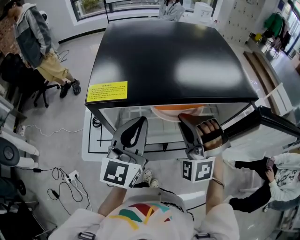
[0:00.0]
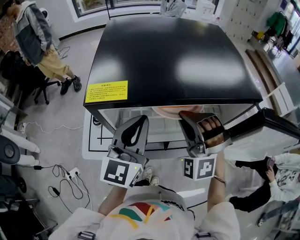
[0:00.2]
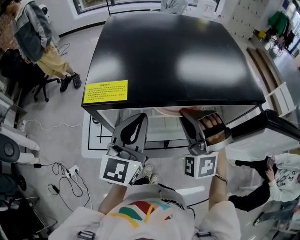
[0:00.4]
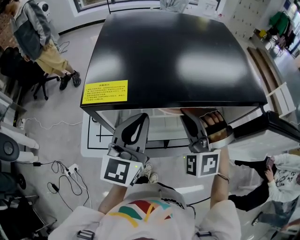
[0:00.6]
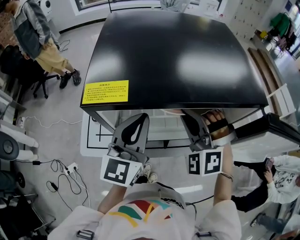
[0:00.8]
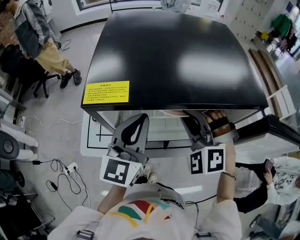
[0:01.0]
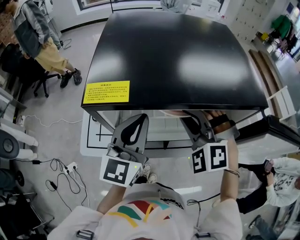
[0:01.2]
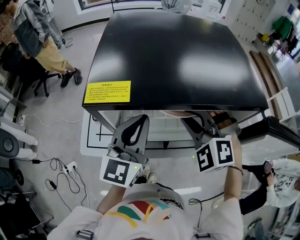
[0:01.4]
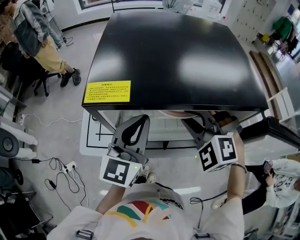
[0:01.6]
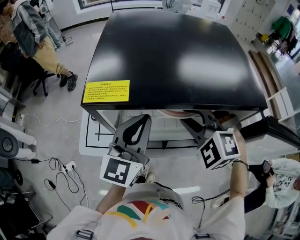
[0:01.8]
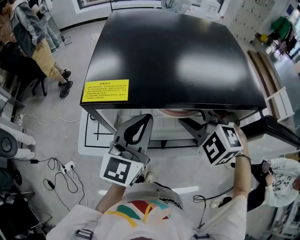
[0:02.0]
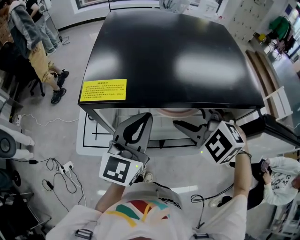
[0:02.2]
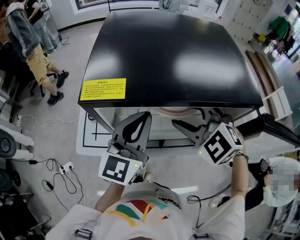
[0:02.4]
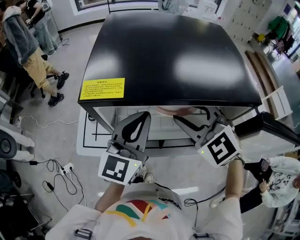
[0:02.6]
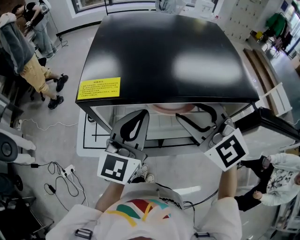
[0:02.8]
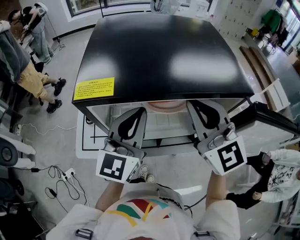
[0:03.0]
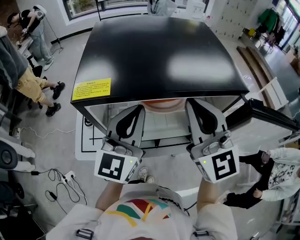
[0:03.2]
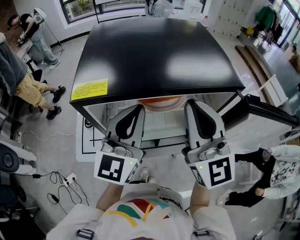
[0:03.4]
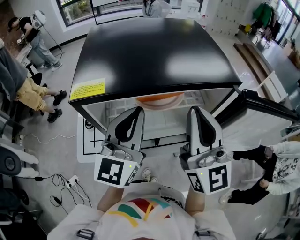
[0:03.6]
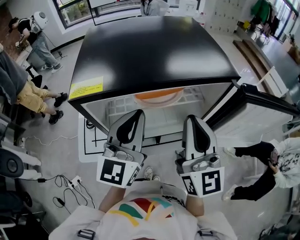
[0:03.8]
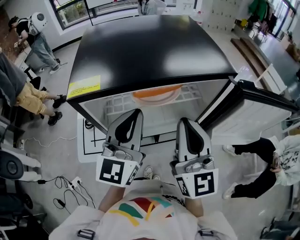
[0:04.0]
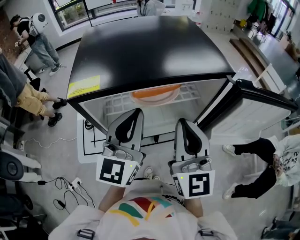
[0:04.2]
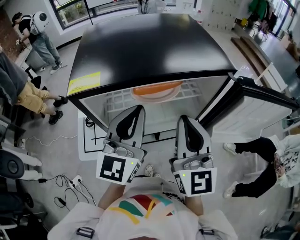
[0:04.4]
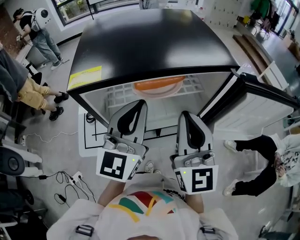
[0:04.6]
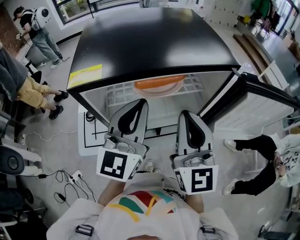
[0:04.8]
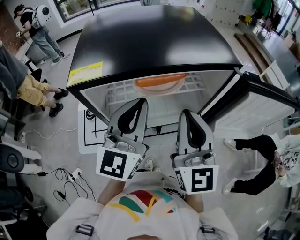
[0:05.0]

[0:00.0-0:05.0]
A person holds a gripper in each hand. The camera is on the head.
0:00.0 to 0:01.6: The right gripper turns by approximately 30 degrees.
0:01.6 to 0:03.4: The right gripper is displaced upward and backward by approximately 15 cm, points its fingers some 50 degrees further upward, and opens, then closes again. The left gripper travels upward by approximately 5 cm.
0:03.4 to 0:05.0: The right gripper travels downward by approximately 5 cm.

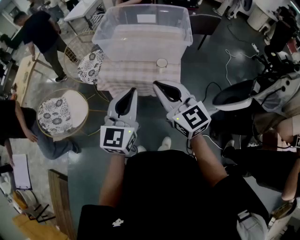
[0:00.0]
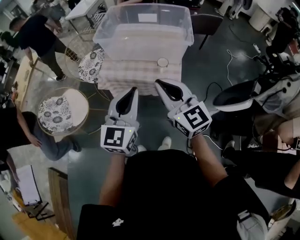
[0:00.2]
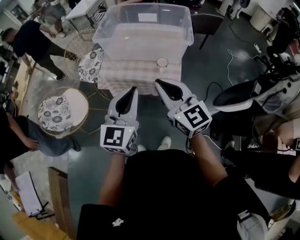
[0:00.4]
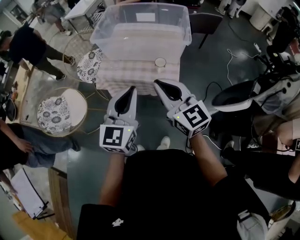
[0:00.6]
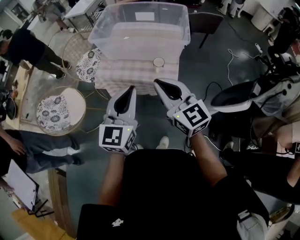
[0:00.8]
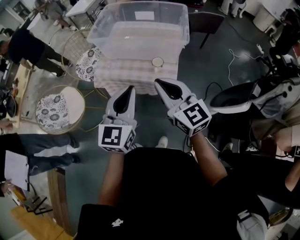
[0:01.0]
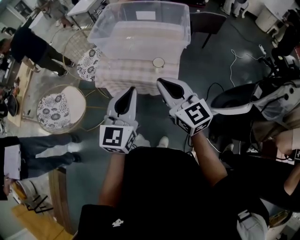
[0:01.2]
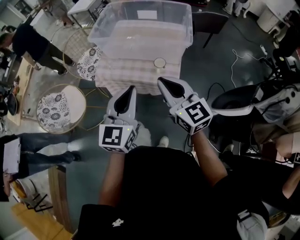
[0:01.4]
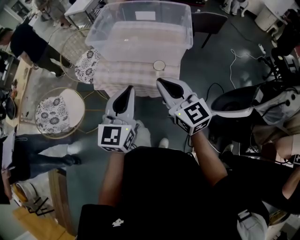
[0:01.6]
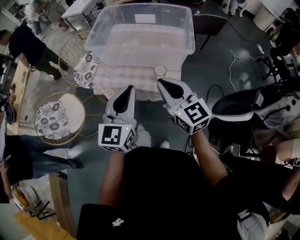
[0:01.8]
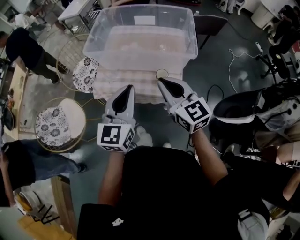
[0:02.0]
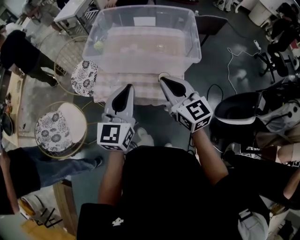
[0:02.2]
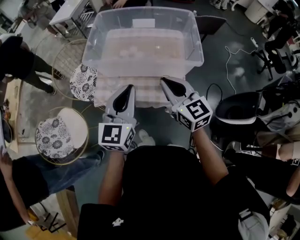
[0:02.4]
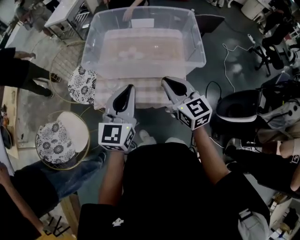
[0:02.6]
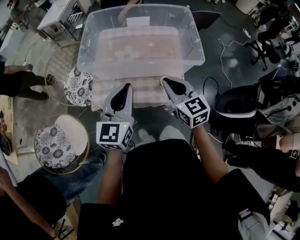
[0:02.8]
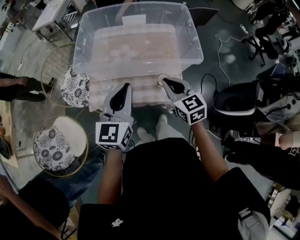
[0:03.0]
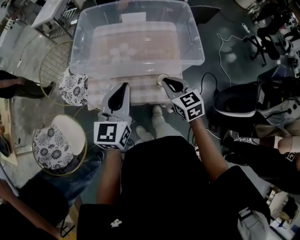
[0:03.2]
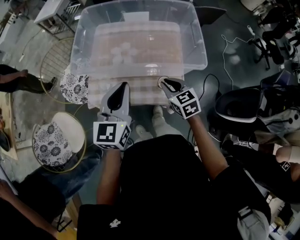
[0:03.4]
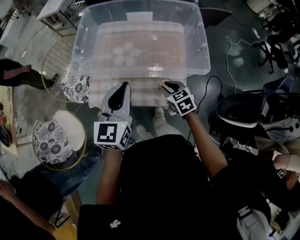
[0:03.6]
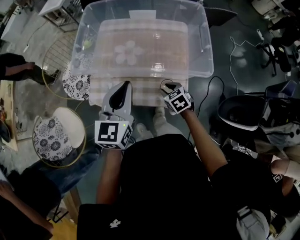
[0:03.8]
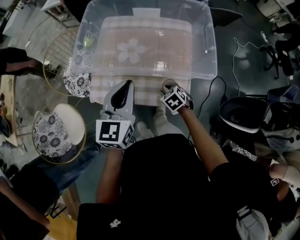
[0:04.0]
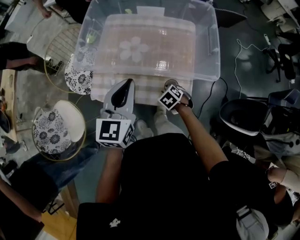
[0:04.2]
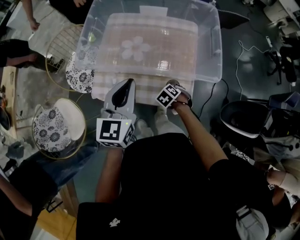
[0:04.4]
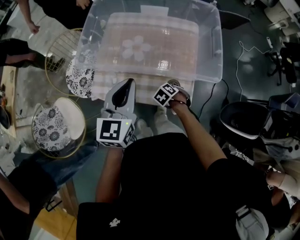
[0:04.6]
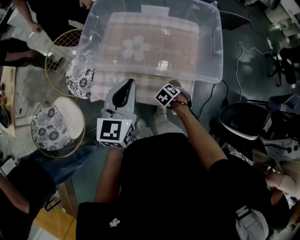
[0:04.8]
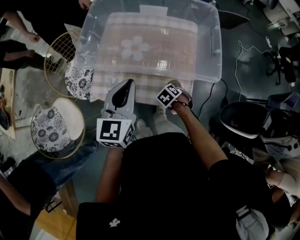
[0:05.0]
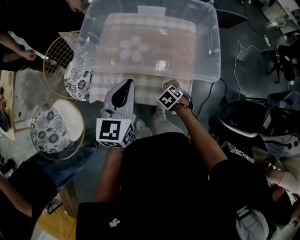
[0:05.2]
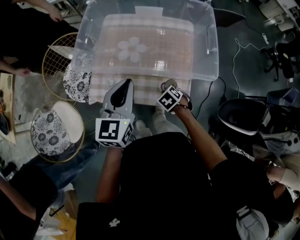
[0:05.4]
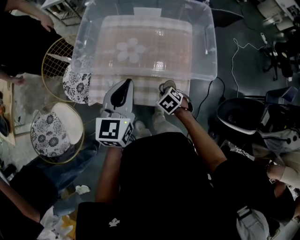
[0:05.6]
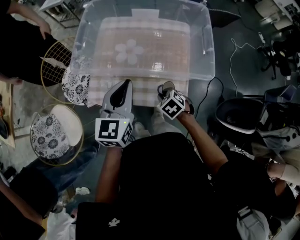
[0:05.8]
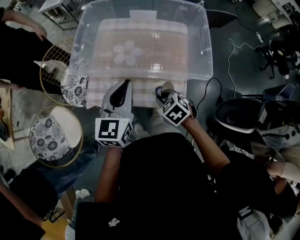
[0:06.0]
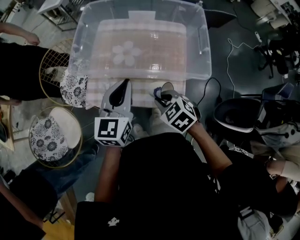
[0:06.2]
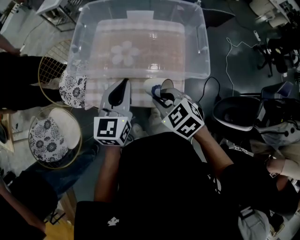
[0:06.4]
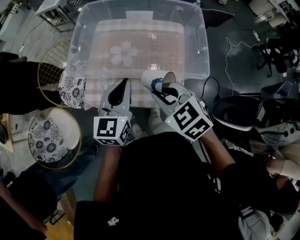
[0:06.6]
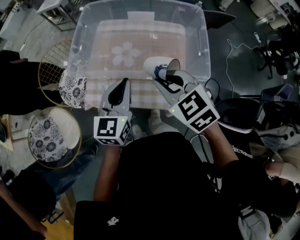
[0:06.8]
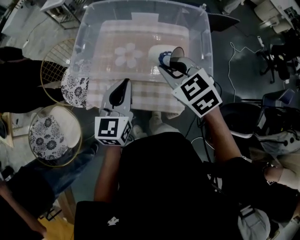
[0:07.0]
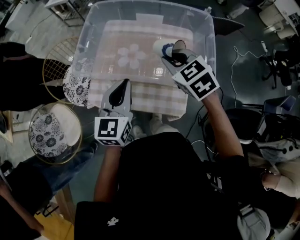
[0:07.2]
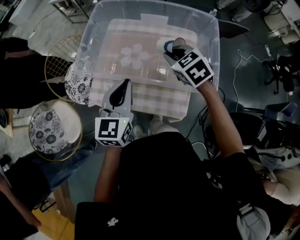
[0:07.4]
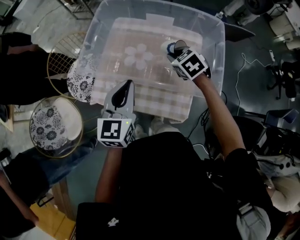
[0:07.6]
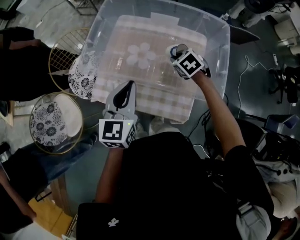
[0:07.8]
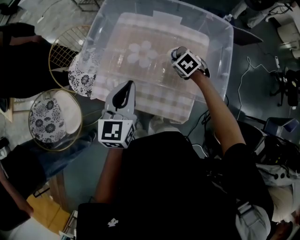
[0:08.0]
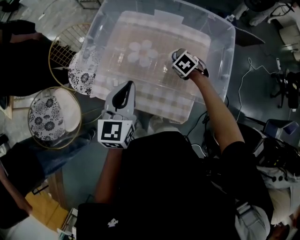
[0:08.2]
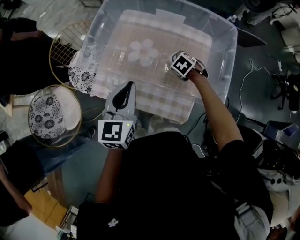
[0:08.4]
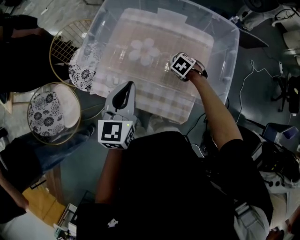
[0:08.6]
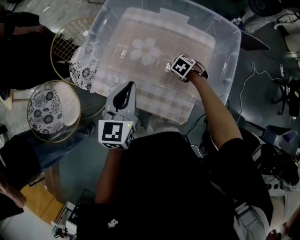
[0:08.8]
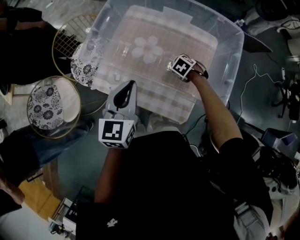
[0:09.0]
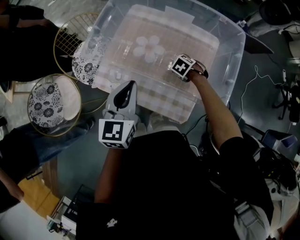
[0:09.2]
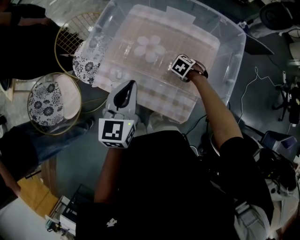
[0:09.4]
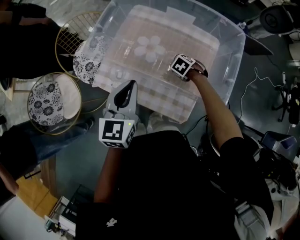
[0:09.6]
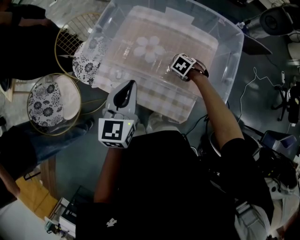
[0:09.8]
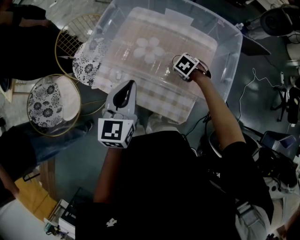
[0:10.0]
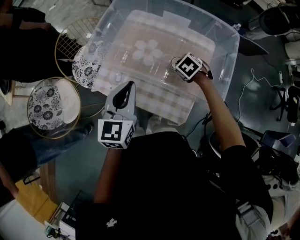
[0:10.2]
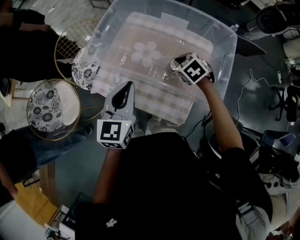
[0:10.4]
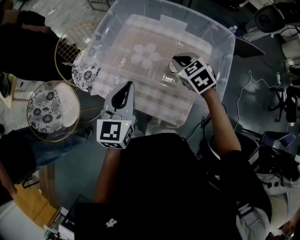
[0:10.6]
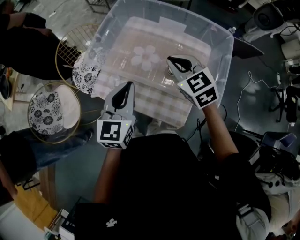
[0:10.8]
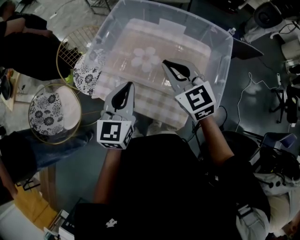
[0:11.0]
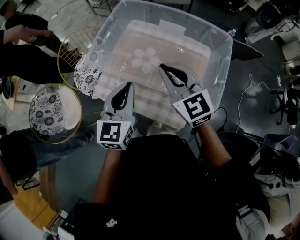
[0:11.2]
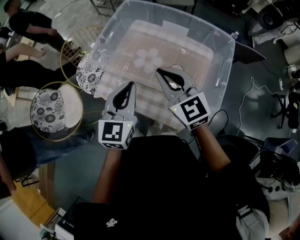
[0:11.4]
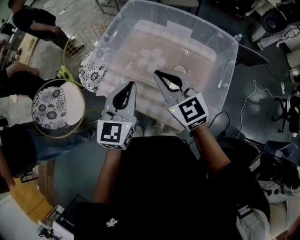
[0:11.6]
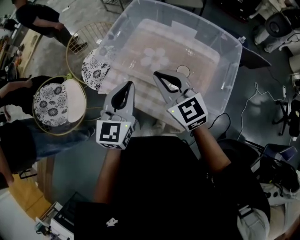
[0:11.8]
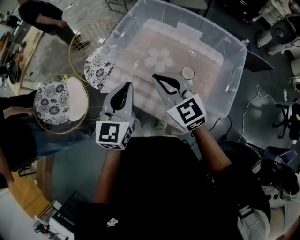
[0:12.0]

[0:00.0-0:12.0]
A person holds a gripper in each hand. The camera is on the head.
0:00.0 to 0:01.6: The left gripper shifts approximately 5 cm forward, while the right gripper shifts approximately 10 cm forward and to the right.
0:01.6 to 0:03.0: The left gripper moves forward, about 20 cm; the right gripper is displaced forward and downward by about 20 cm, and turns by about 30 degrees.
0:03.0 to 0:04.4: The left gripper moves some 10 cm, while the right gripper is displaced downward by some 30 cm, points its fingers approximately 50 degrees further downward, and opens its fingers.
0:04.4 to 0:06.0: The right gripper goes about 15 cm upward, and changes its angle by about 20 degrees.
0:06.0 to 0:07.6: The right gripper is displaced forward by some 20 cm.
0:07.6 to 0:09.0: The right gripper heads downward, covering some 20 cm, and swivels roughly 30 degrees.
0:09.0 to 0:10.4: The right gripper is displaced upward by roughly 15 cm, and changes its angle by approximately 20 degrees.
0:10.4 to 0:12.0: The right gripper is displaced upward, to the left and backward by roughly 25 cm, and tips its fingers upward by approximately 50 degrees; the left gripper shifts roughly 5 cm to the left.

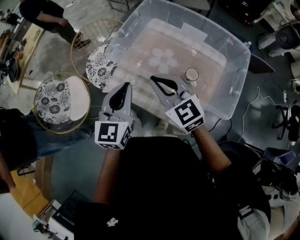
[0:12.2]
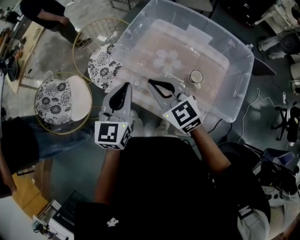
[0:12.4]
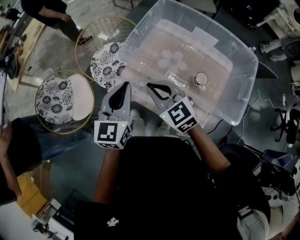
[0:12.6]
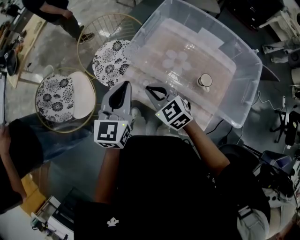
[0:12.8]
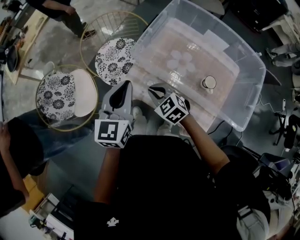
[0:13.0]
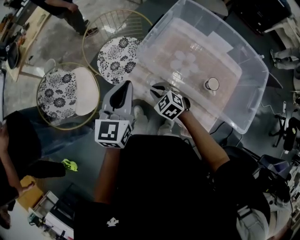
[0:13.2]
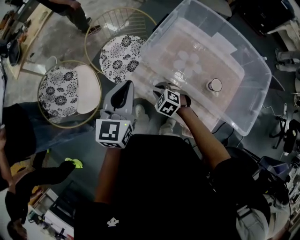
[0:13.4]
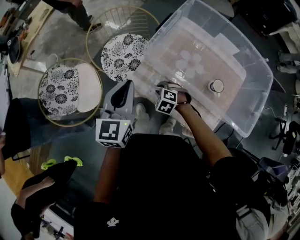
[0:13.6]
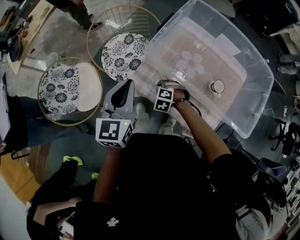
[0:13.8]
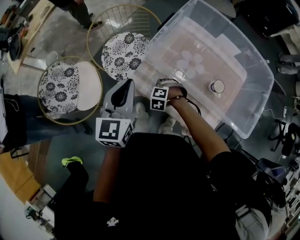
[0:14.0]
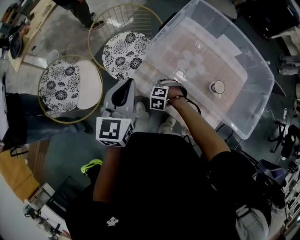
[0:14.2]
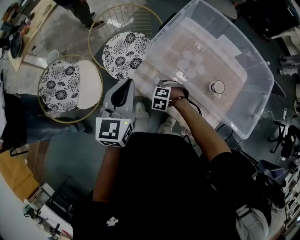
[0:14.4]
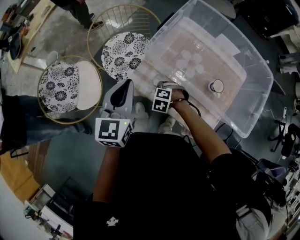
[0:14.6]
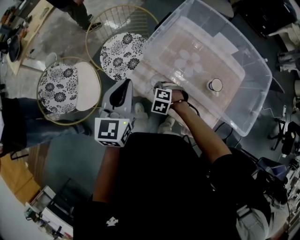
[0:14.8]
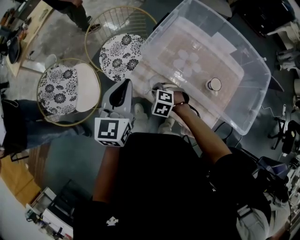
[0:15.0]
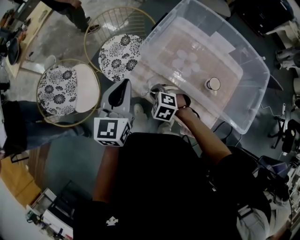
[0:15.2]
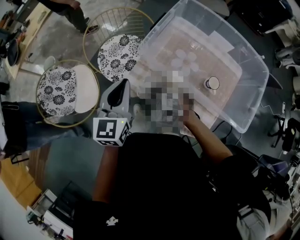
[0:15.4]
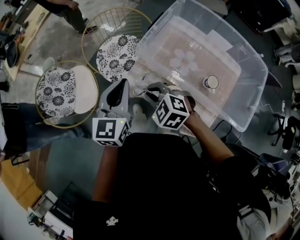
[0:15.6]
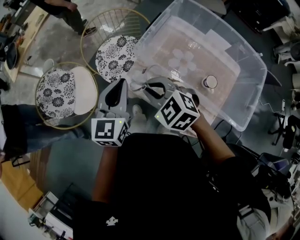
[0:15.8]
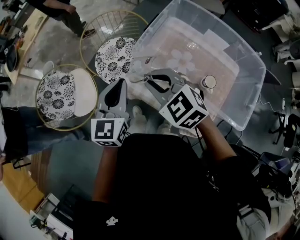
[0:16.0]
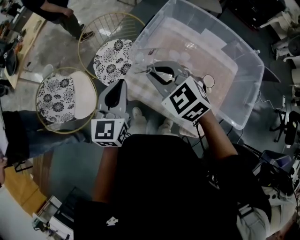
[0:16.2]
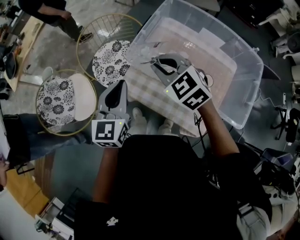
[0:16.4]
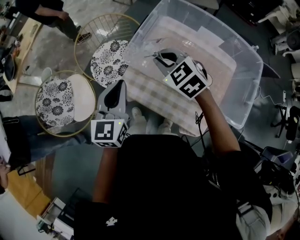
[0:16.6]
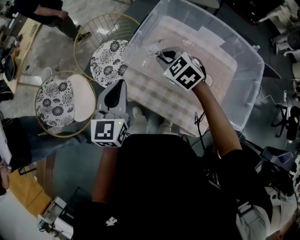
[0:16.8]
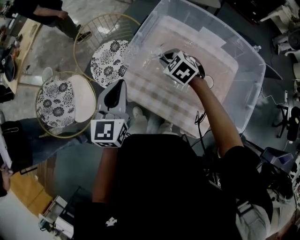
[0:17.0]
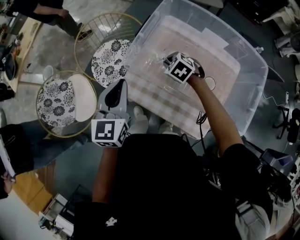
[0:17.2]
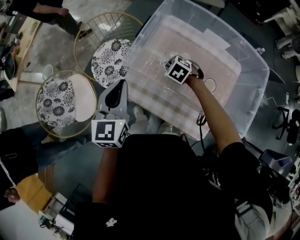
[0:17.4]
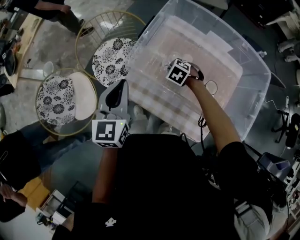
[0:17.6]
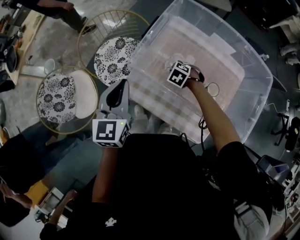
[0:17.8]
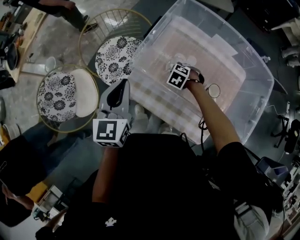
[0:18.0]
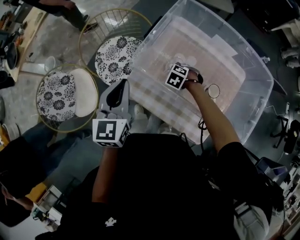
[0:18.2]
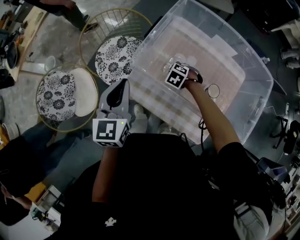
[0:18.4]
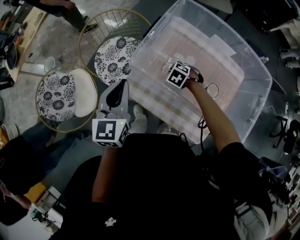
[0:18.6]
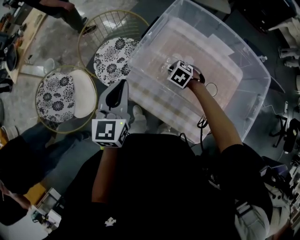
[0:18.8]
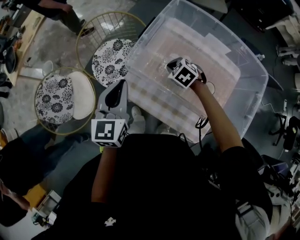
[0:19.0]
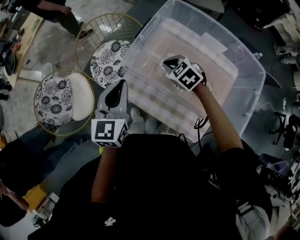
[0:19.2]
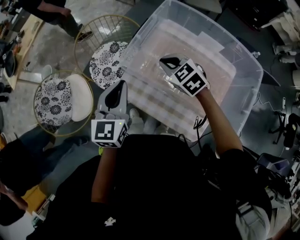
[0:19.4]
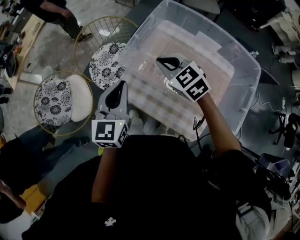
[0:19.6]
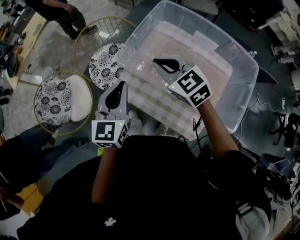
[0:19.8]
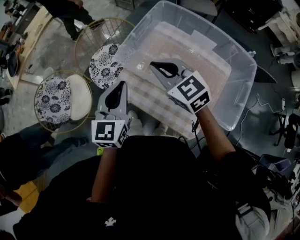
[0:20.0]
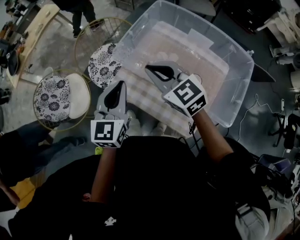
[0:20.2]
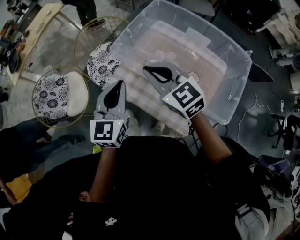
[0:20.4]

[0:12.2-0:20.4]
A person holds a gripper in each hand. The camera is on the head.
0:12.2 to 0:13.8: The left gripper shifts about 15 cm to the left and forward; the right gripper goes about 35 cm downward, angles its fingers downward, by some 60 degrees, and opens its fingers.
0:13.8 to 0:15.4: The right gripper travels upward by roughly 15 cm.
0:15.4 to 0:17.2: The left gripper moves to the right, about 5 cm; the right gripper heads to the right and forward, covering approximately 25 cm, and travels upward and back again, roughly 20 cm each way.
0:17.2 to 0:18.8: The right gripper travels downward by about 5 cm.
0:18.8 to 0:20.4: The left gripper moves backward, some 10 cm. The right gripper moves upward and backward, approximately 30 cm, and tips its fingers upward by about 50 degrees.
